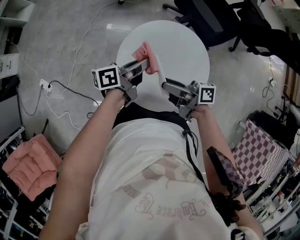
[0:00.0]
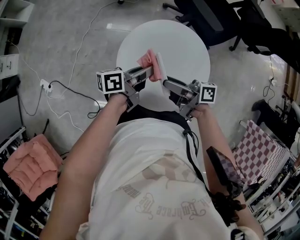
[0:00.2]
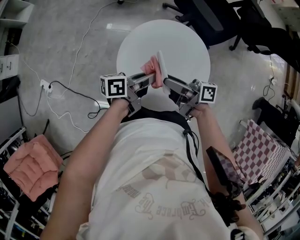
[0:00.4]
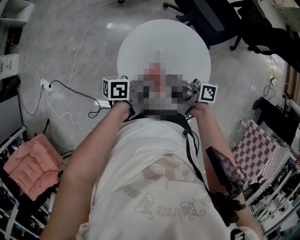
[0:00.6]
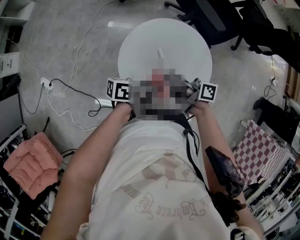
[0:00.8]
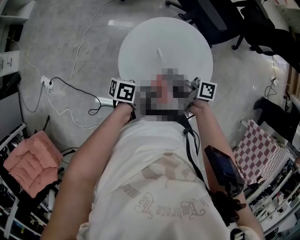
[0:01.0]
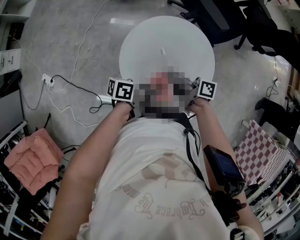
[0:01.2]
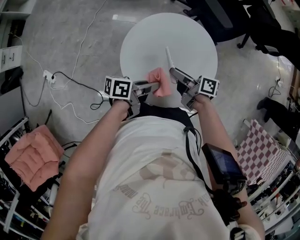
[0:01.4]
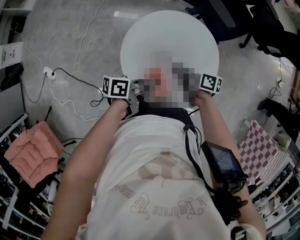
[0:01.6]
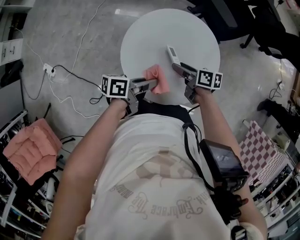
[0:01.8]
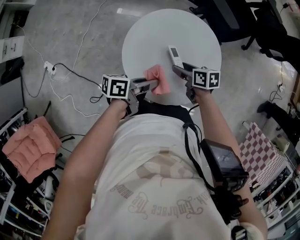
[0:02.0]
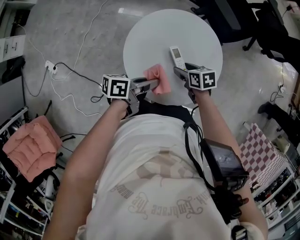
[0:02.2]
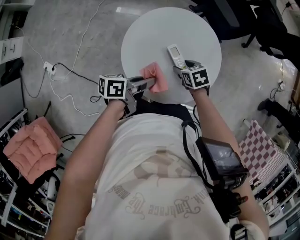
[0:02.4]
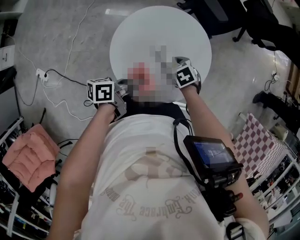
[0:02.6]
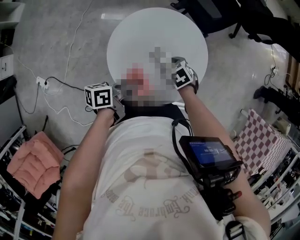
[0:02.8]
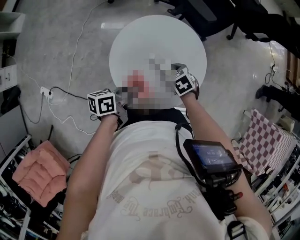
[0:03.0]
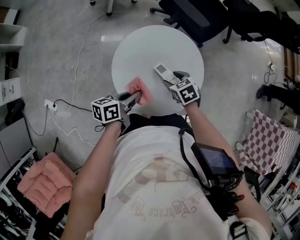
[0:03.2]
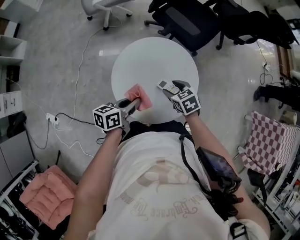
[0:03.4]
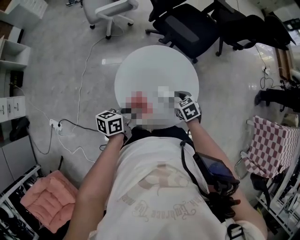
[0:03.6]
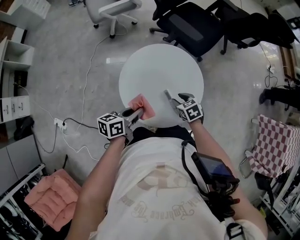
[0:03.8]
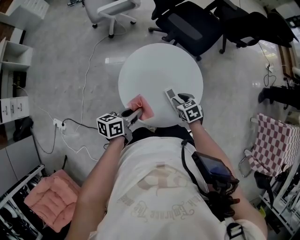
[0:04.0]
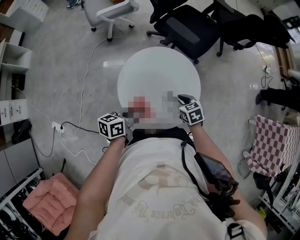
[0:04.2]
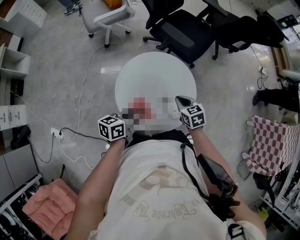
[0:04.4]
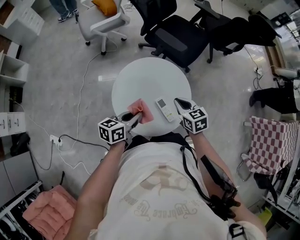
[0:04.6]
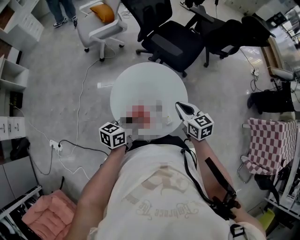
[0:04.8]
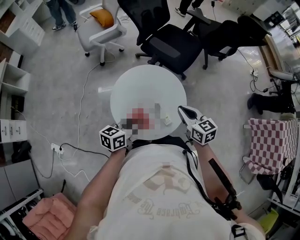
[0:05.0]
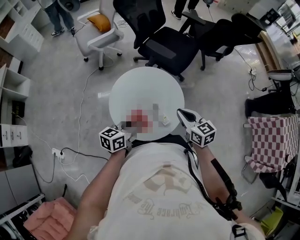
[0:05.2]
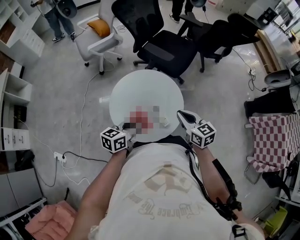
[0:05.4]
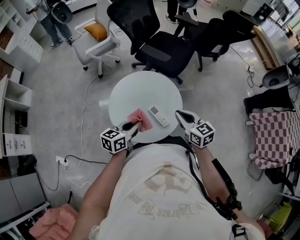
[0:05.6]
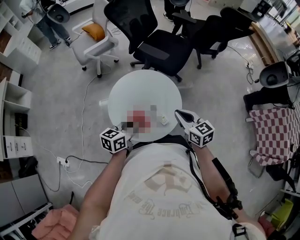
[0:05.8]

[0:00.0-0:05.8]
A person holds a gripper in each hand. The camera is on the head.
0:00.0 to 0:01.4: The right gripper moves downward, about 10 cm. The left gripper shifts by approximately 15 cm, and rotates about 20 degrees.
0:01.4 to 0:02.8: The right gripper shifts roughly 10 cm downward, and points its fingers some 60 degrees further downward.
0:02.8 to 0:04.4: The left gripper is displaced upward by roughly 5 cm, and changes its angle by approximately 30 degrees. Meanwhile the right gripper swings up and down, roughly 10 cm each way, with 2 reversals, turns by approximately 30 degrees, and closes up.
0:04.4 to 0:05.8: The right gripper moves upward, backward and to the right, approximately 15 cm, and rotates some 30 degrees, while the left gripper shifts roughly 5 cm to the right.

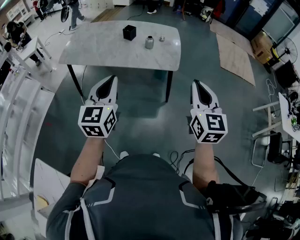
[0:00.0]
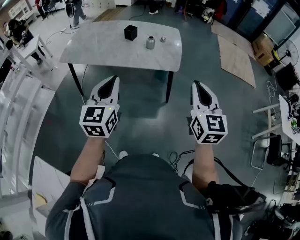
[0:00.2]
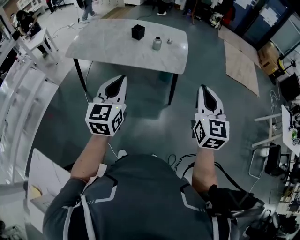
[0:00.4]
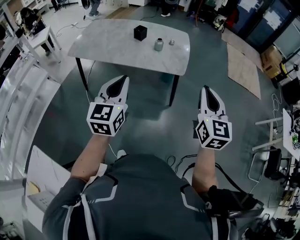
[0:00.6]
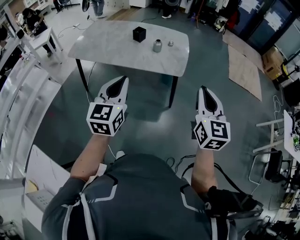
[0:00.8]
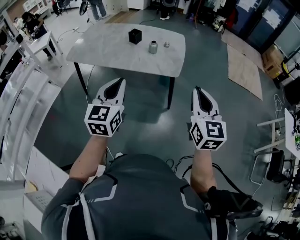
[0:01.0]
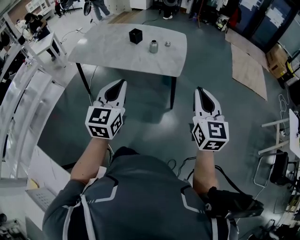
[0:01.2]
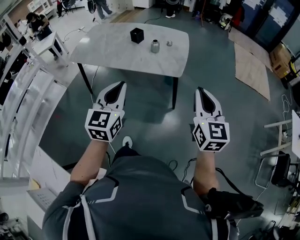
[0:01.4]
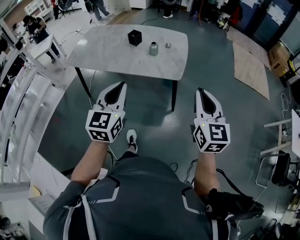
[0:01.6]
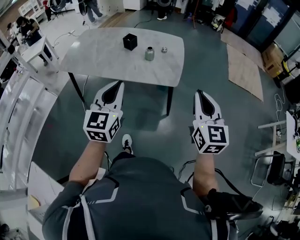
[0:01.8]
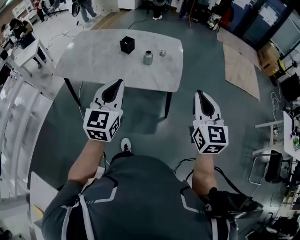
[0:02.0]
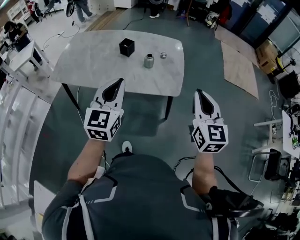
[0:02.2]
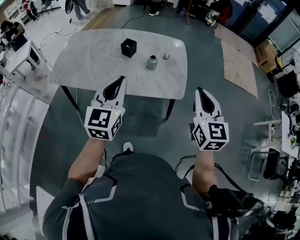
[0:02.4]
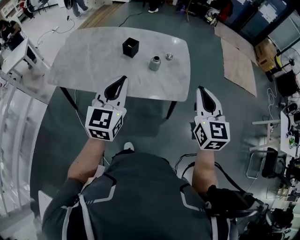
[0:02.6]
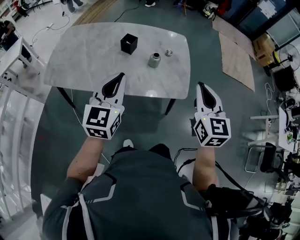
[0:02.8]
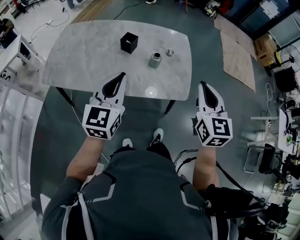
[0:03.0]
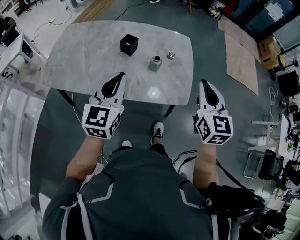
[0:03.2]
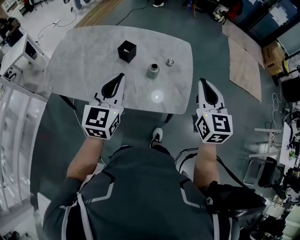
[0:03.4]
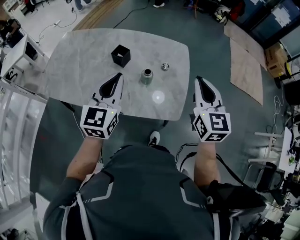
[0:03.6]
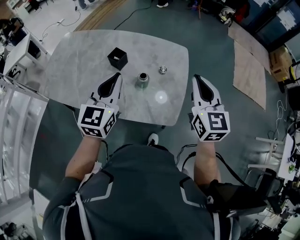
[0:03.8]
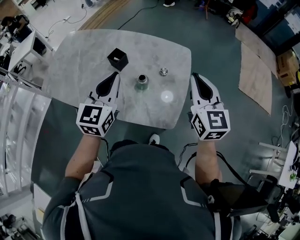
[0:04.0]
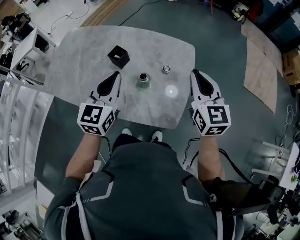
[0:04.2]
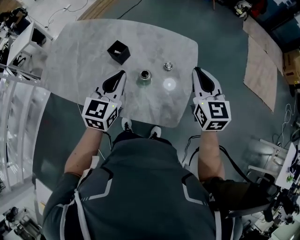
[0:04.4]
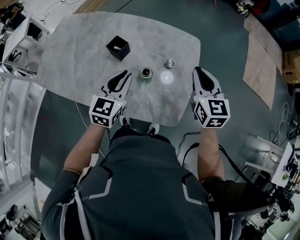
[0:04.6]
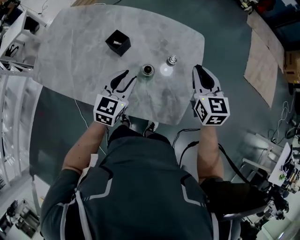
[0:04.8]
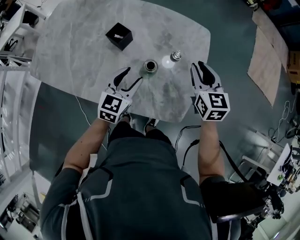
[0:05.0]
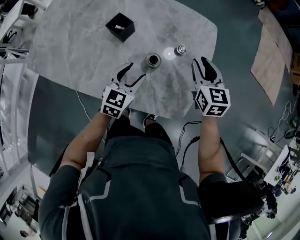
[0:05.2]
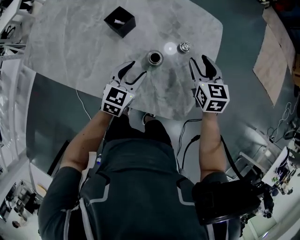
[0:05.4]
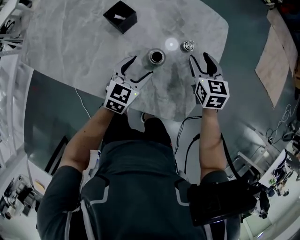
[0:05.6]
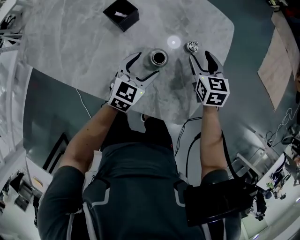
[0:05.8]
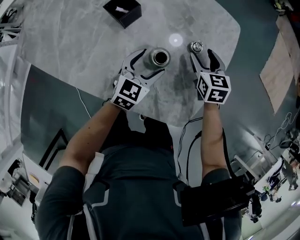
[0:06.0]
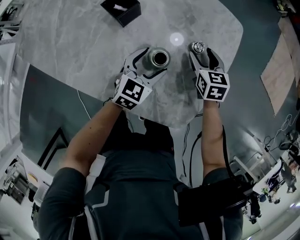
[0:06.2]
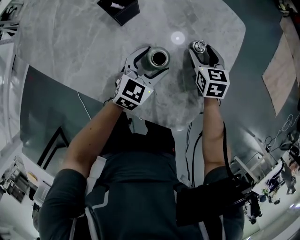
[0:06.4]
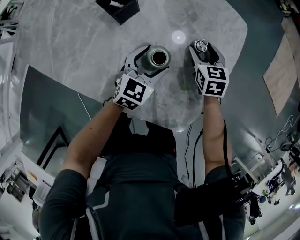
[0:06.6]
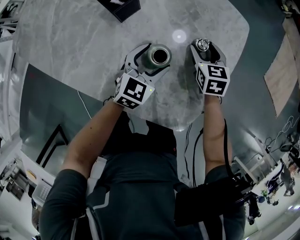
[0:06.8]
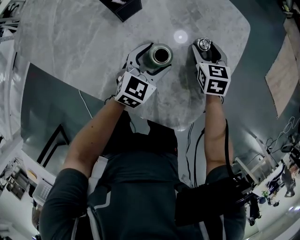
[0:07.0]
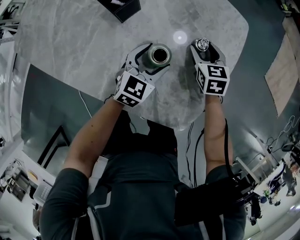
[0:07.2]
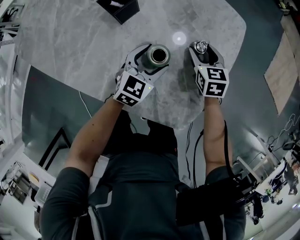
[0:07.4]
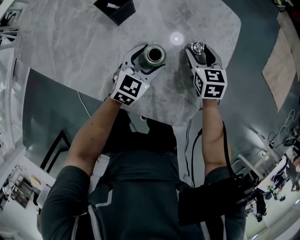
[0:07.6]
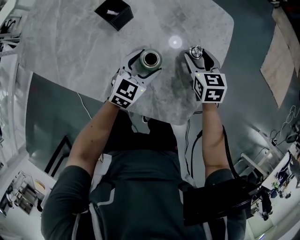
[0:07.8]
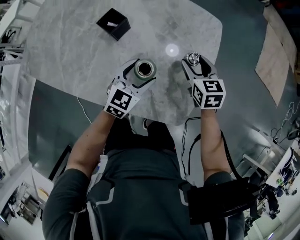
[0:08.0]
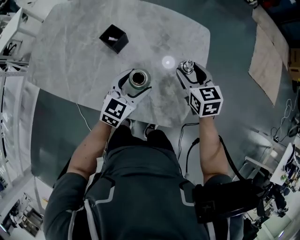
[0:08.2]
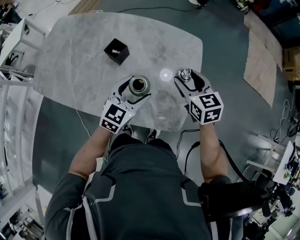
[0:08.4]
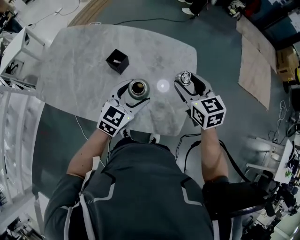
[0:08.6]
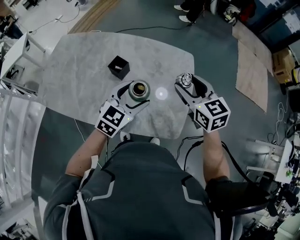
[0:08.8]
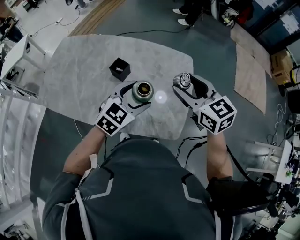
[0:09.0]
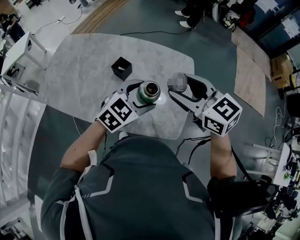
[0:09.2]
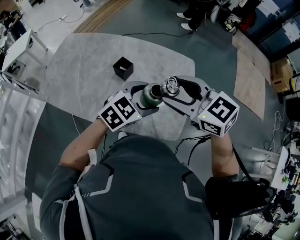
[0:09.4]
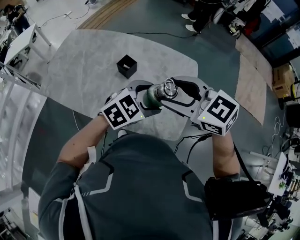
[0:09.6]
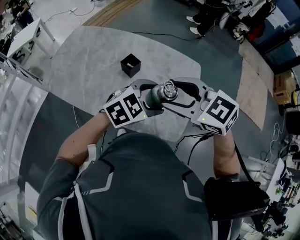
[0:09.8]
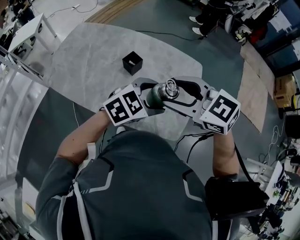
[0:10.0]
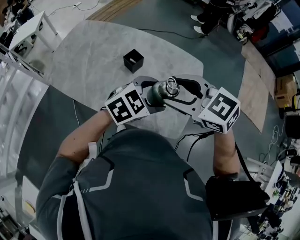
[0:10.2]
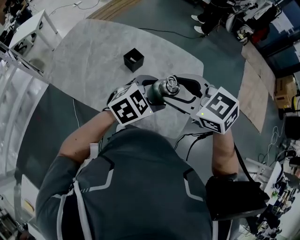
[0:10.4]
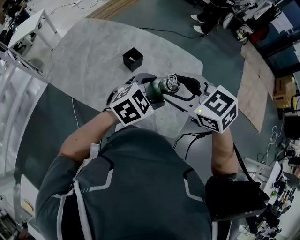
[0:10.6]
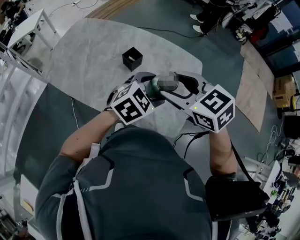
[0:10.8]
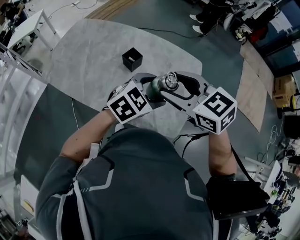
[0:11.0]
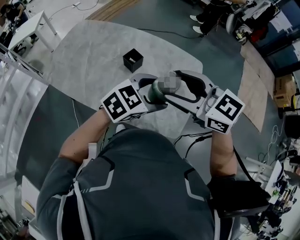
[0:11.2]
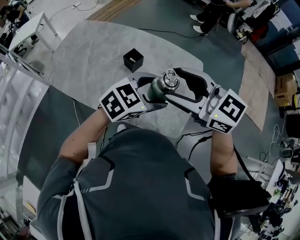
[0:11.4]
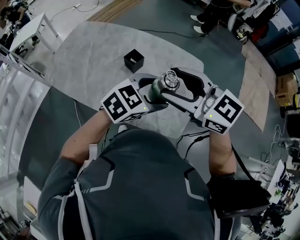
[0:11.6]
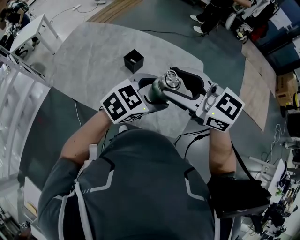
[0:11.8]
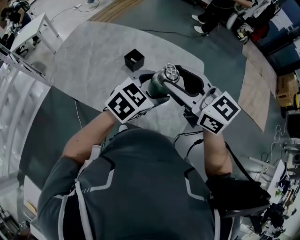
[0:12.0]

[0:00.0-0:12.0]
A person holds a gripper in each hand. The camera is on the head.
0:00.0 to 0:01.6: The left gripper shifts roughly 10 cm to the right, while the right gripper is displaced to the right and forward by roughly 10 cm.
0:01.6 to 0:03.0: Both grippers move forward and to the left, roughly 30 cm.
0:03.0 to 0:04.4: The right gripper goes approximately 30 cm forward. Meanwhile the left gripper goes about 25 cm forward and to the right.
0:04.4 to 0:06.0: The left gripper shifts some 30 cm downward, and opens its fingers. Meanwhile the right gripper travels downward and forward by some 35 cm, rotates about 30 degrees, and opens up.
0:06.0 to 0:07.6: The grippers make only small movements.
0:07.6 to 0:09.0: Both grippers travel together upward, about 35 cm. The left gripper turns by roughly 20 degrees, while the right gripper swivels roughly 20 degrees.
0:09.0 to 0:10.4: The right gripper moves roughly 15 cm, and rotates some 30 degrees.
0:10.4 to 0:12.0: The right gripper turns by about 30 degrees.

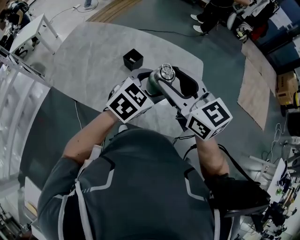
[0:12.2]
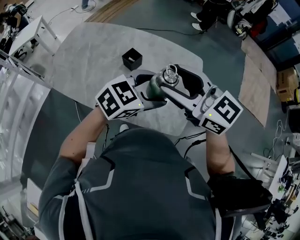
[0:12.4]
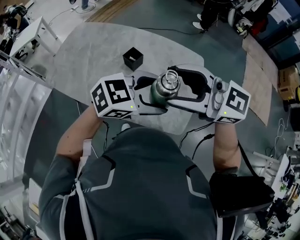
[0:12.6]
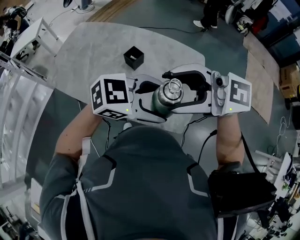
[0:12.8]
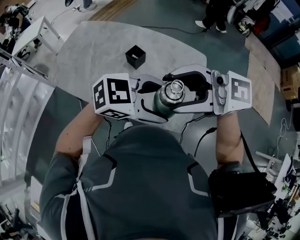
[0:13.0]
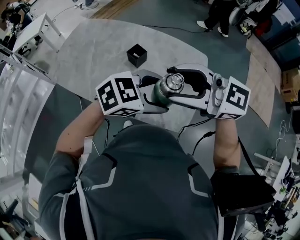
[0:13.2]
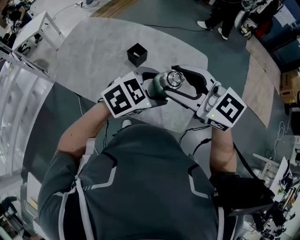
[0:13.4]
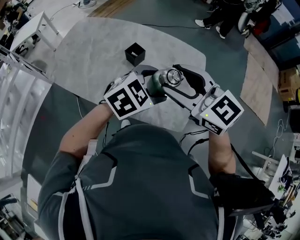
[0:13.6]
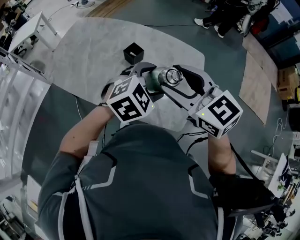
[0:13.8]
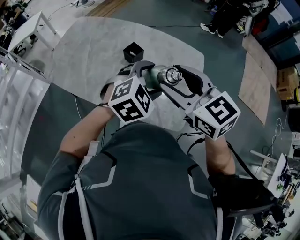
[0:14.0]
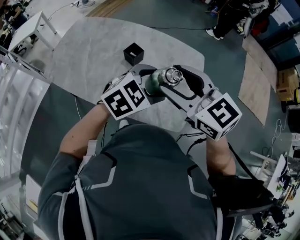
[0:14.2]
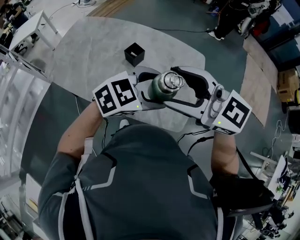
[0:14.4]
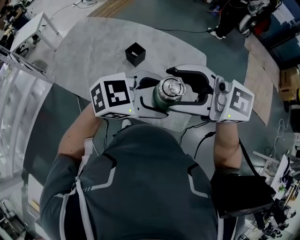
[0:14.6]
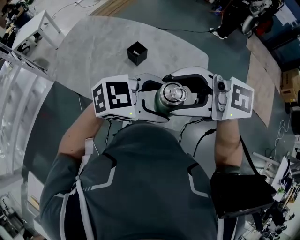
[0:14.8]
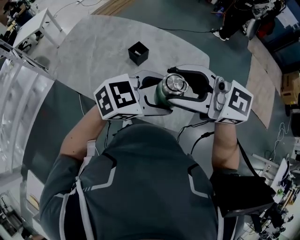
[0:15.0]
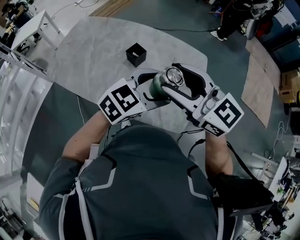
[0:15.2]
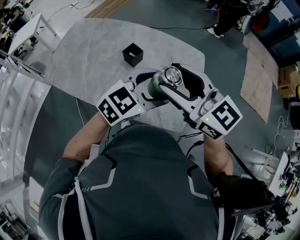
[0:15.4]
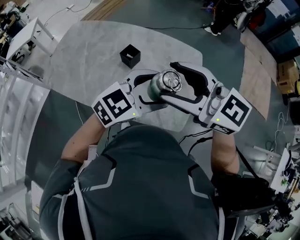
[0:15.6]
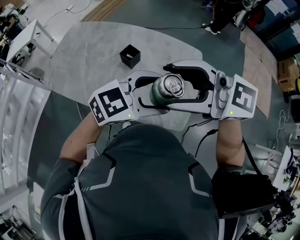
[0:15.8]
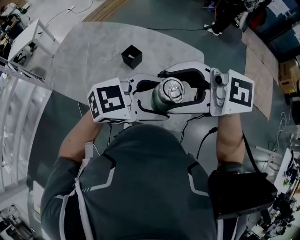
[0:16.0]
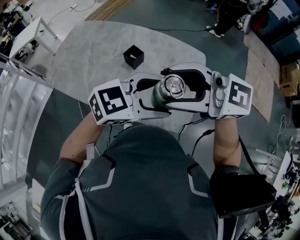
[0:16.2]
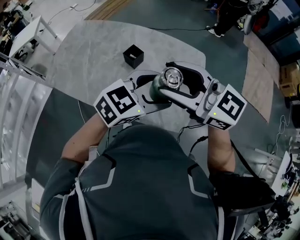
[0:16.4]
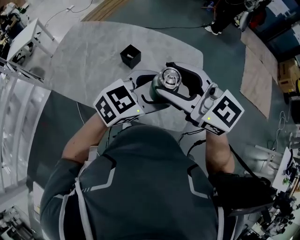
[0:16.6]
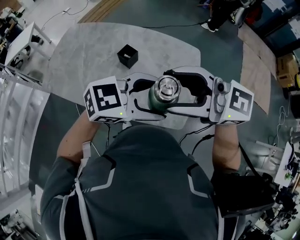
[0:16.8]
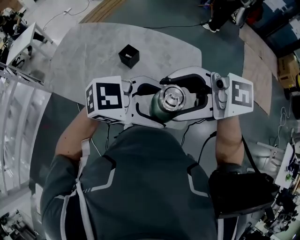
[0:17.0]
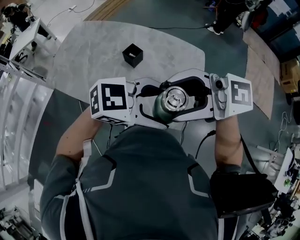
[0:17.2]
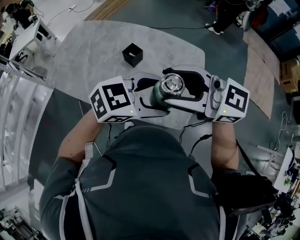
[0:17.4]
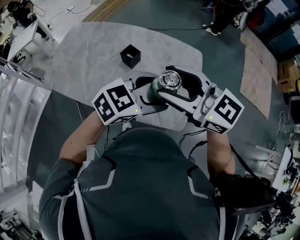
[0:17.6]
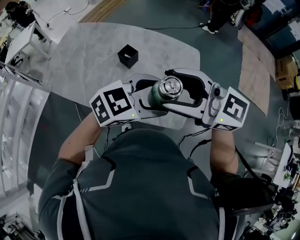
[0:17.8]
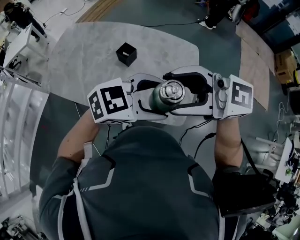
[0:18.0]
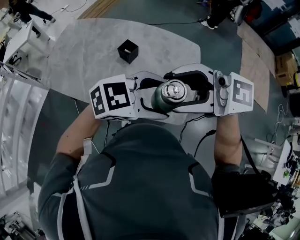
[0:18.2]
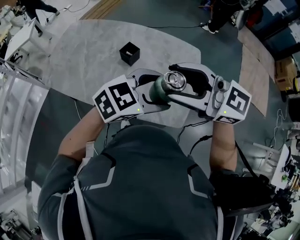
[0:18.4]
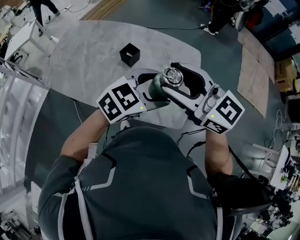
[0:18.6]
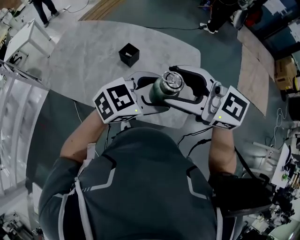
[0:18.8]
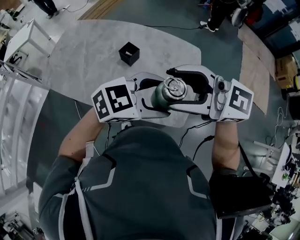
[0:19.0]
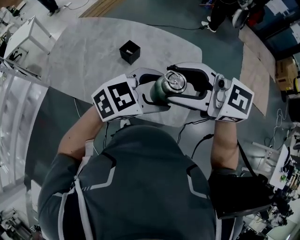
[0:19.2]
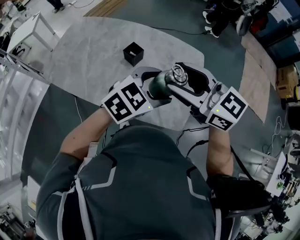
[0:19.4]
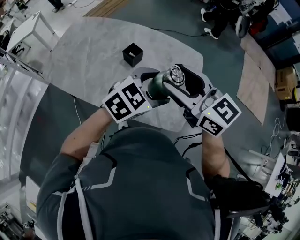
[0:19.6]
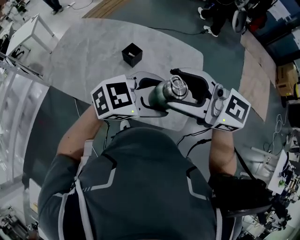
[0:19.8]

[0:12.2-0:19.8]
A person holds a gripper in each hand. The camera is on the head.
0:13.8 to 0:15.2: The left gripper changes its angle by roughly 20 degrees.
0:15.2 to 0:16.8: The left gripper ends up some 5 cm from where it was, and rotates some 30 degrees. Meanwhile the right gripper moves roughly 5 cm, and changes its angle by about 20 degrees.
0:16.8 to 0:18.2: There are only small adjustments of the grippers.
